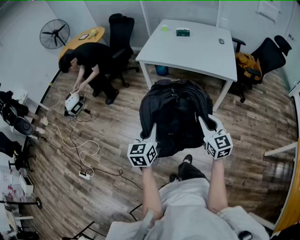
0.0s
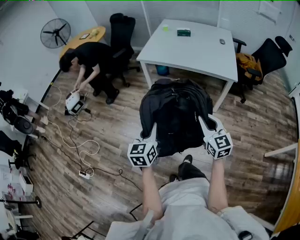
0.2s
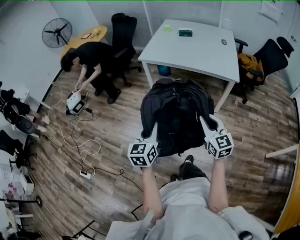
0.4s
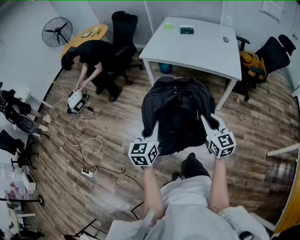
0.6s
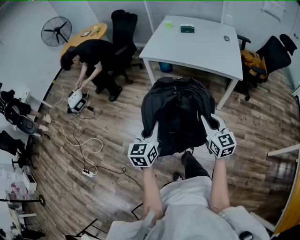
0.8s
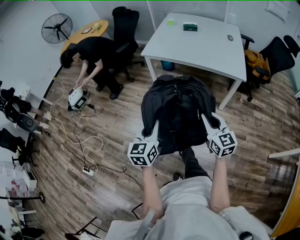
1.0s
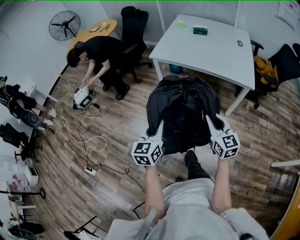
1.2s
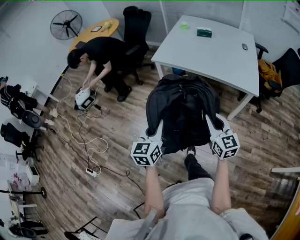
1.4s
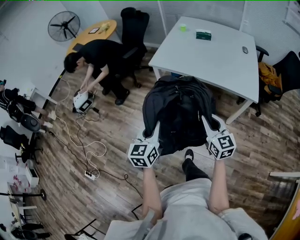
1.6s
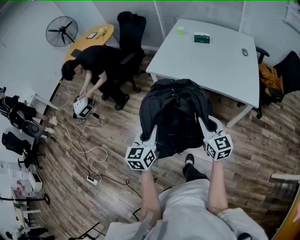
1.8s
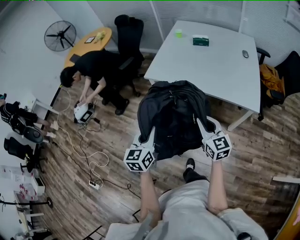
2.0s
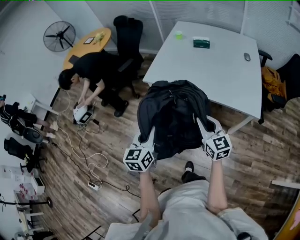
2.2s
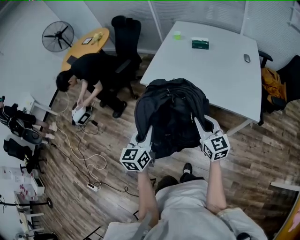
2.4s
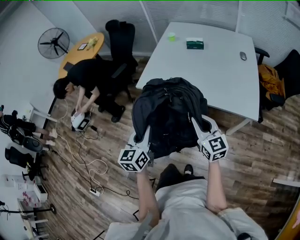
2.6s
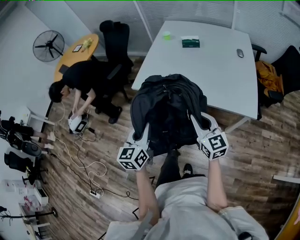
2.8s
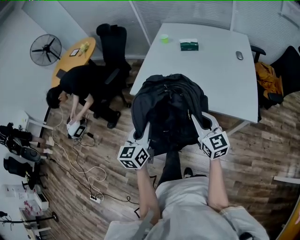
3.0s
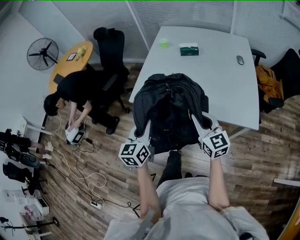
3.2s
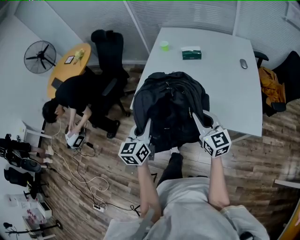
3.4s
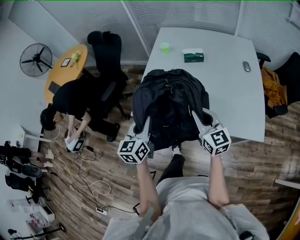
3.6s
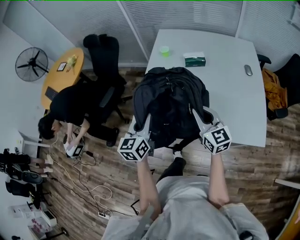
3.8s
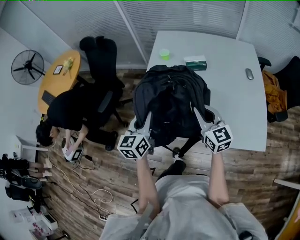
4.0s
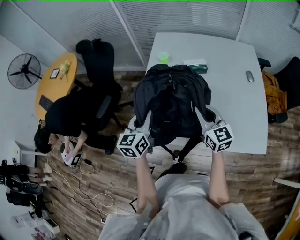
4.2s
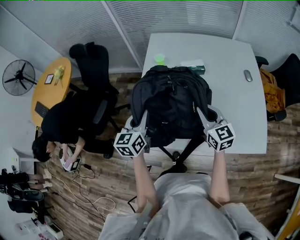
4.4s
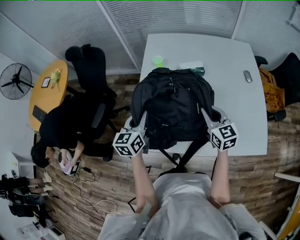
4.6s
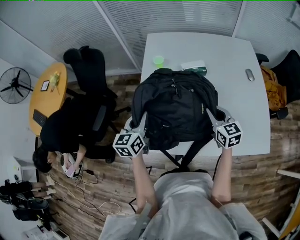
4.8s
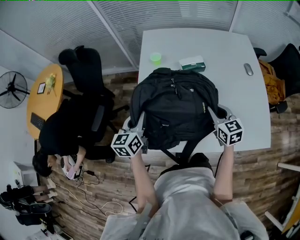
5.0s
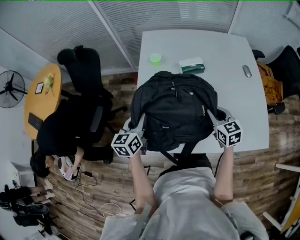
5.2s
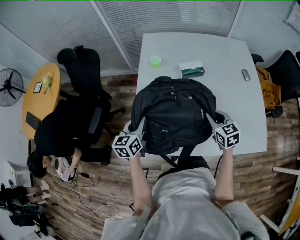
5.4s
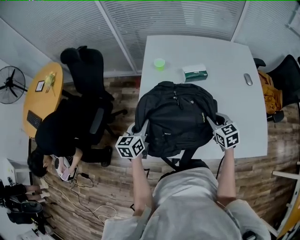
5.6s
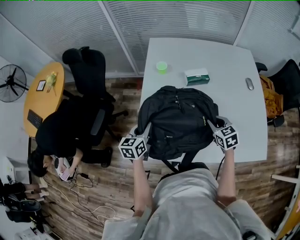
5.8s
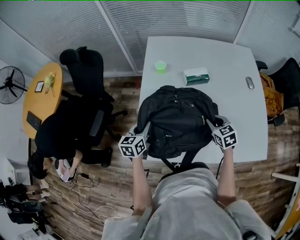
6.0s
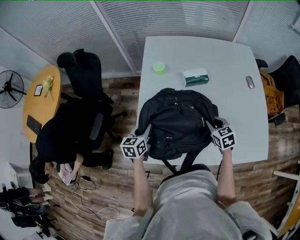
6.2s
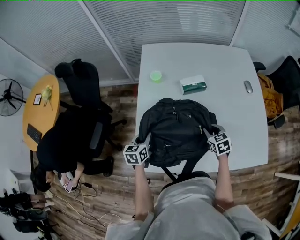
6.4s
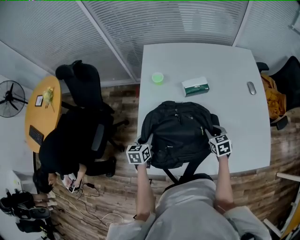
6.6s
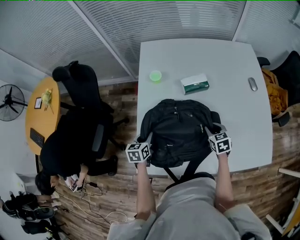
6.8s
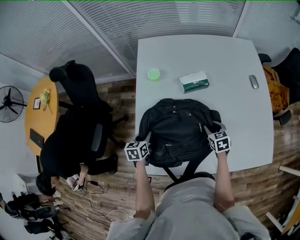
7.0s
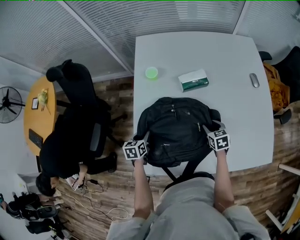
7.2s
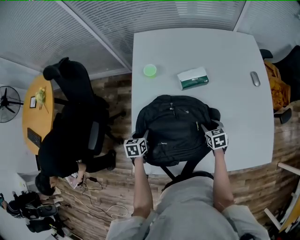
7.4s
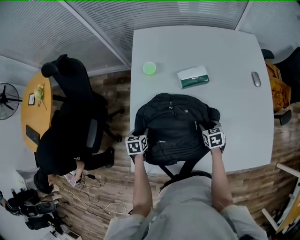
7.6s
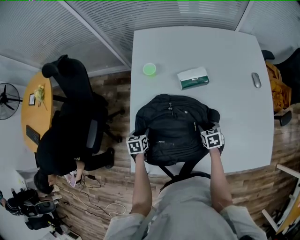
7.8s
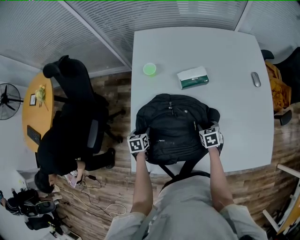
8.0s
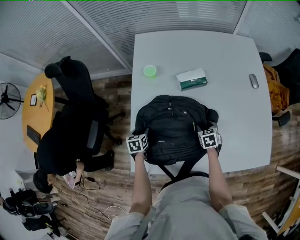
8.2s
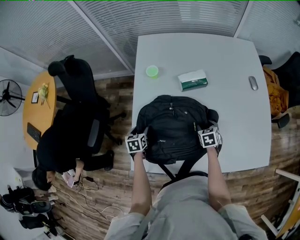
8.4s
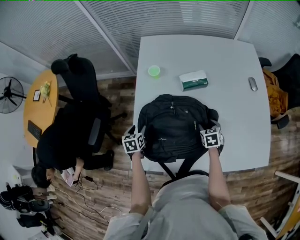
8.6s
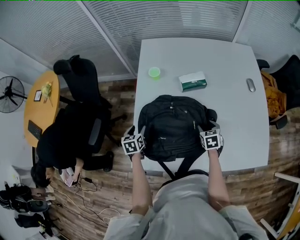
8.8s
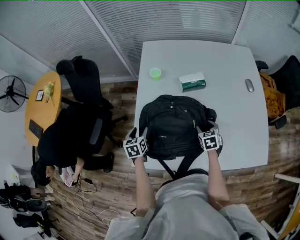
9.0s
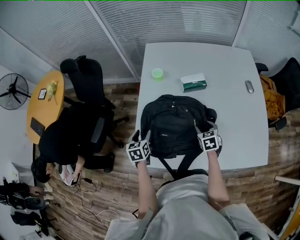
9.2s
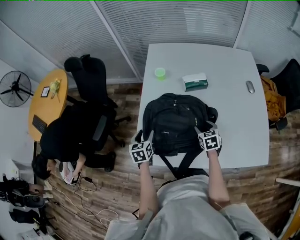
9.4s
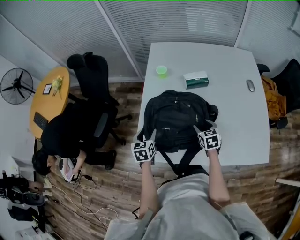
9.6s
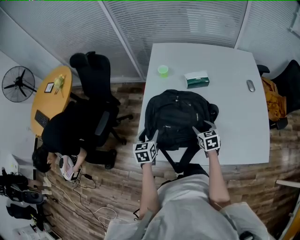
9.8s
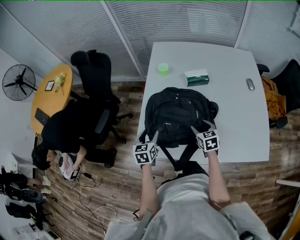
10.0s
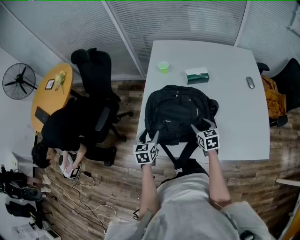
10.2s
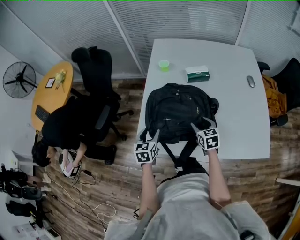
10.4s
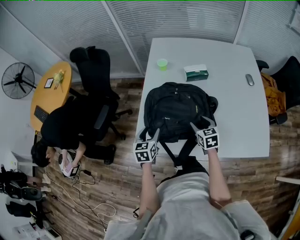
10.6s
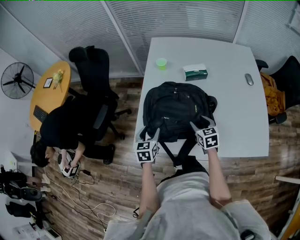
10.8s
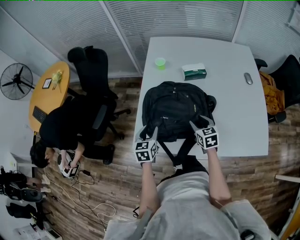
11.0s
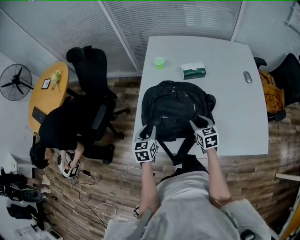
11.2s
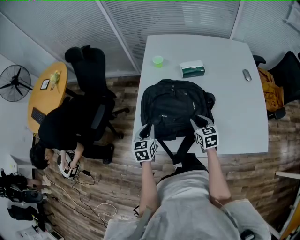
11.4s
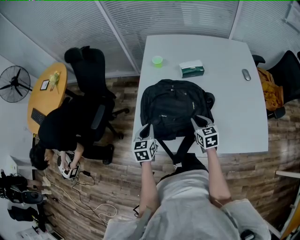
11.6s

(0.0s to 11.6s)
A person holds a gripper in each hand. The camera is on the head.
0.0s - 1.4s: Both grippers travel together forward, approximately 15 cm.
1.4s - 2.8s: Both grippers travel together forward, some 25 cm.
2.8s - 4.4s: Both grippers are carried forward, roughly 40 cm.
4.4s - 5.8s: The left gripper travels downward and forward by some 15 cm; the right gripper travels downward by approximately 10 cm, and swivels approximately 30 degrees.
5.8s - 7.2s: The two grippers go about 15 cm downward and forward. The right gripper opens. Meanwhile the left gripper turns by about 20 degrees, and opens up.
7.2s - 8.8s: The left gripper travels downward and back again, roughly 5 cm each way, and opens its fingers.
8.8s - 10.2s: The right gripper goes some 15 cm to the left, backward and upward; the left gripper shifts about 15 cm backward and upward.
10.2s - 11.6s: The left gripper closes. Meanwhile the right gripper closes up.

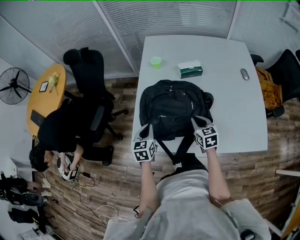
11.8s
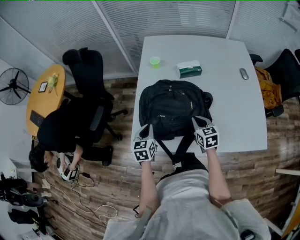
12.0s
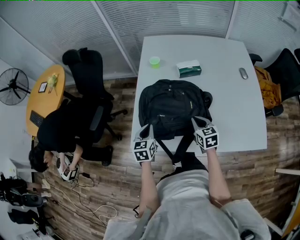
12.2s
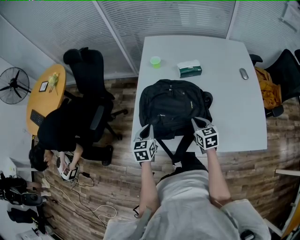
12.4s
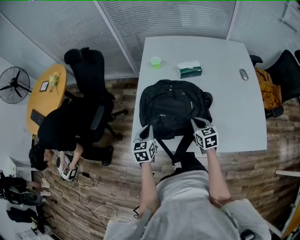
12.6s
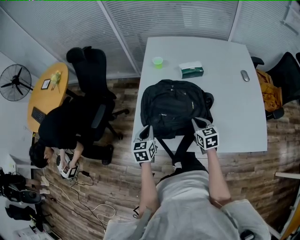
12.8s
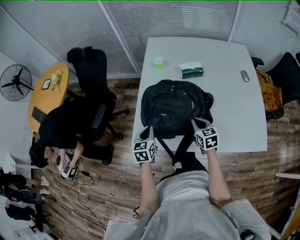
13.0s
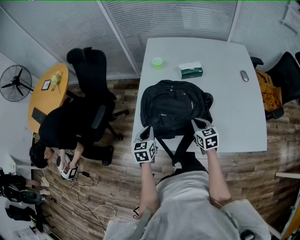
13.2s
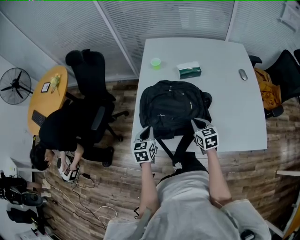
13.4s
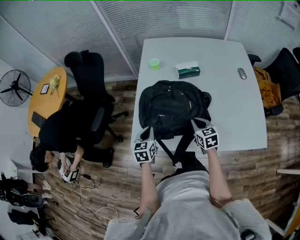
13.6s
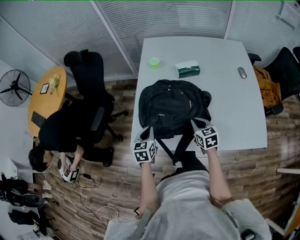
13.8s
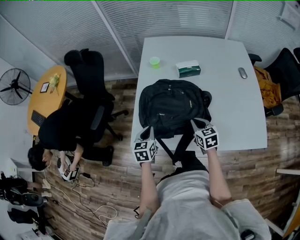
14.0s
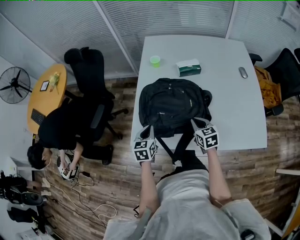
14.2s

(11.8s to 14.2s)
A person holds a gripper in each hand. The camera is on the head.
11.8s - 13.0s: The grippers move only a little.
13.0s - 14.2s: The two grippers keep their place.

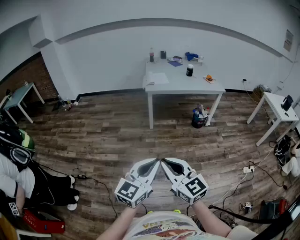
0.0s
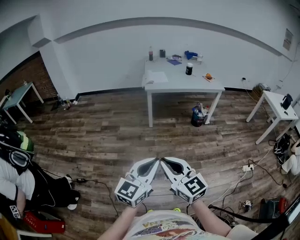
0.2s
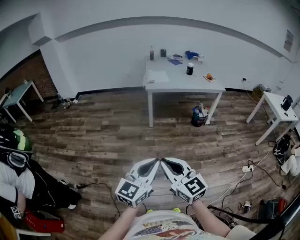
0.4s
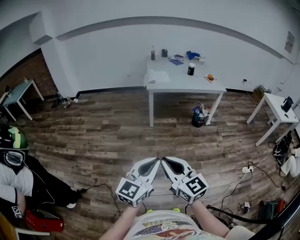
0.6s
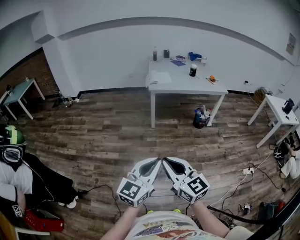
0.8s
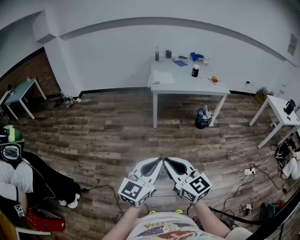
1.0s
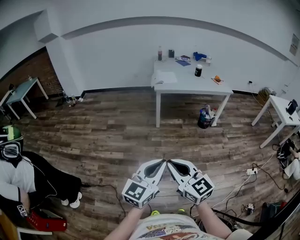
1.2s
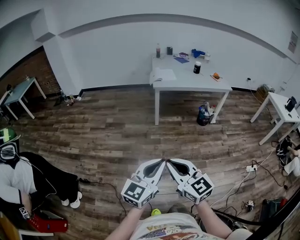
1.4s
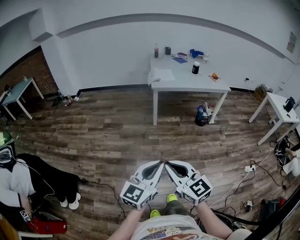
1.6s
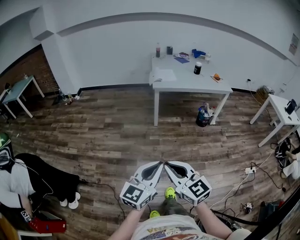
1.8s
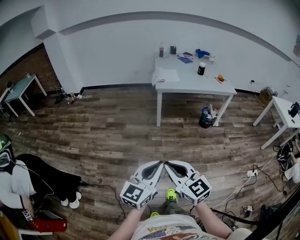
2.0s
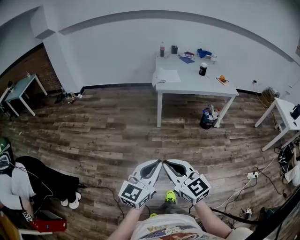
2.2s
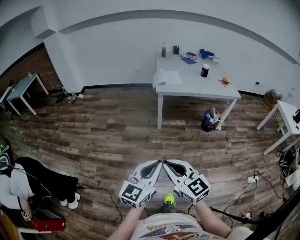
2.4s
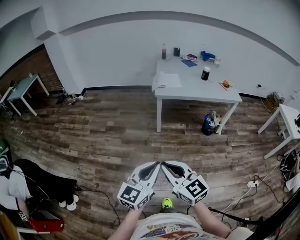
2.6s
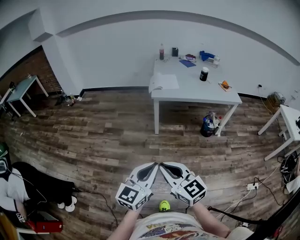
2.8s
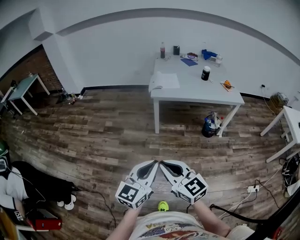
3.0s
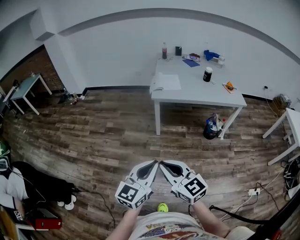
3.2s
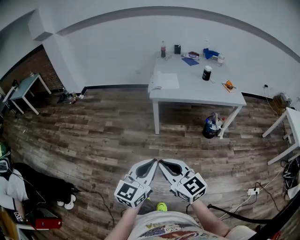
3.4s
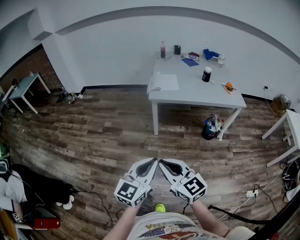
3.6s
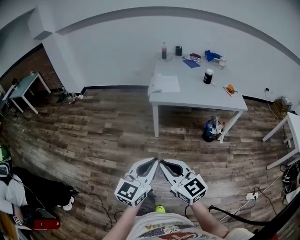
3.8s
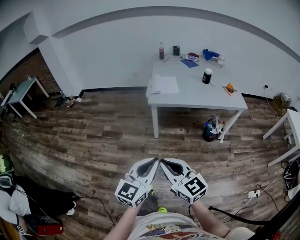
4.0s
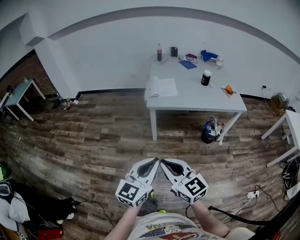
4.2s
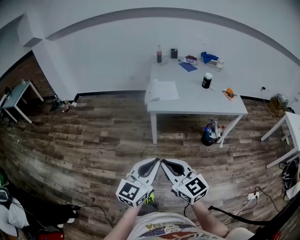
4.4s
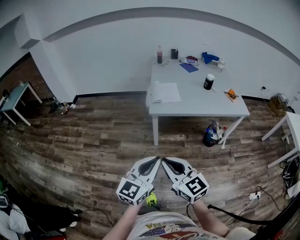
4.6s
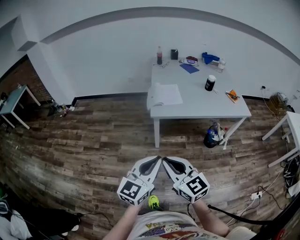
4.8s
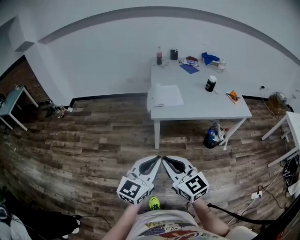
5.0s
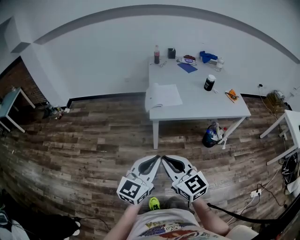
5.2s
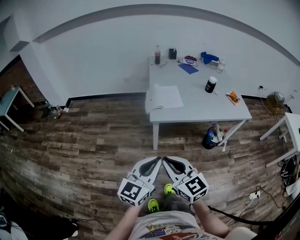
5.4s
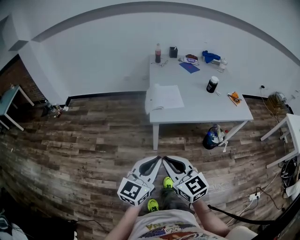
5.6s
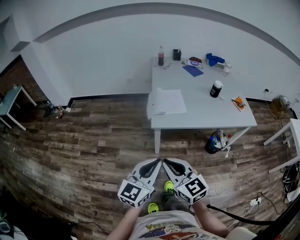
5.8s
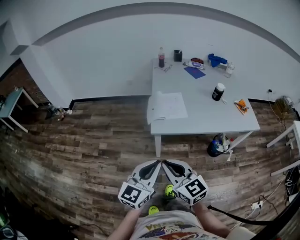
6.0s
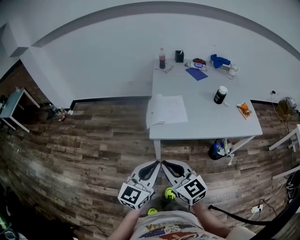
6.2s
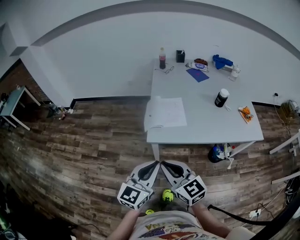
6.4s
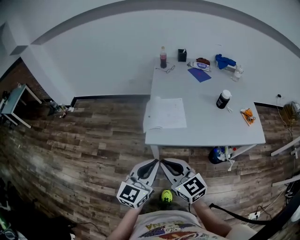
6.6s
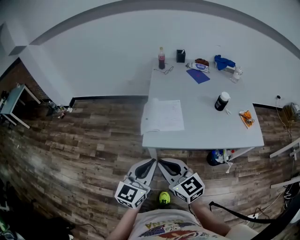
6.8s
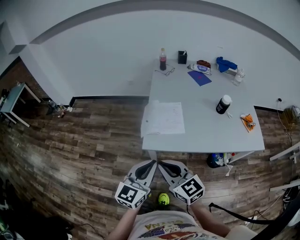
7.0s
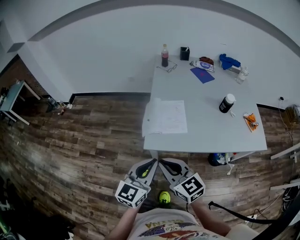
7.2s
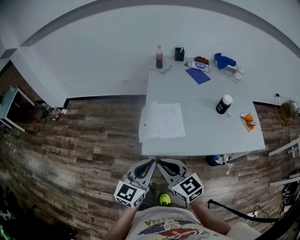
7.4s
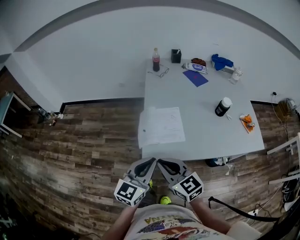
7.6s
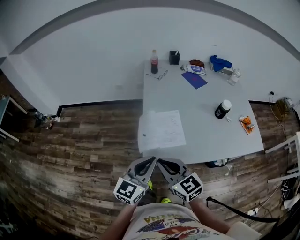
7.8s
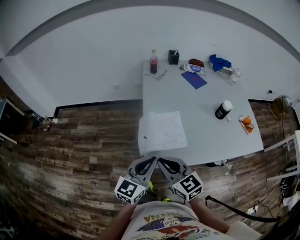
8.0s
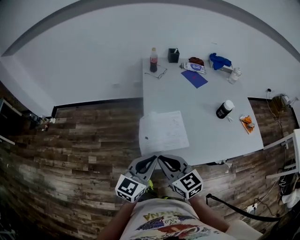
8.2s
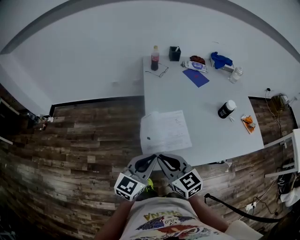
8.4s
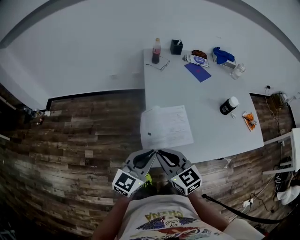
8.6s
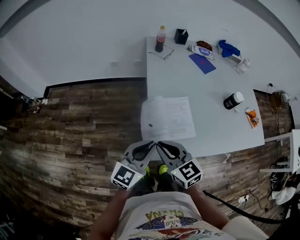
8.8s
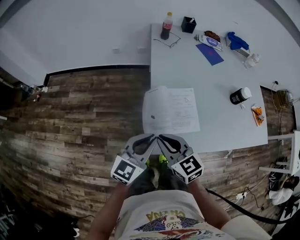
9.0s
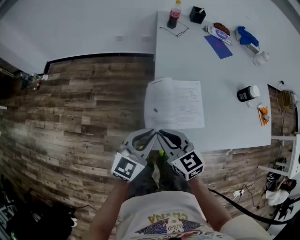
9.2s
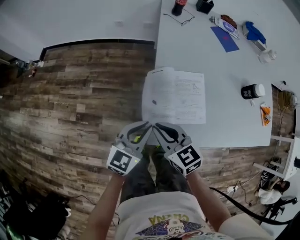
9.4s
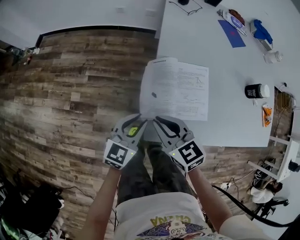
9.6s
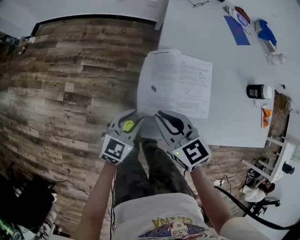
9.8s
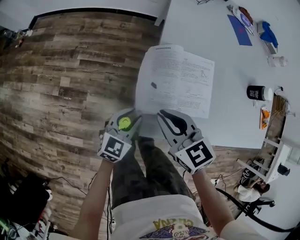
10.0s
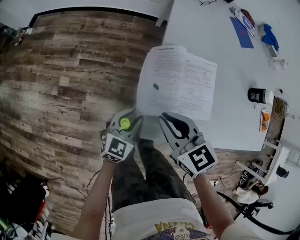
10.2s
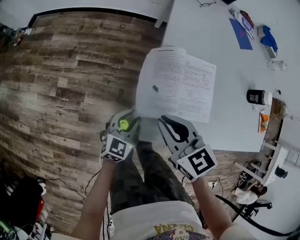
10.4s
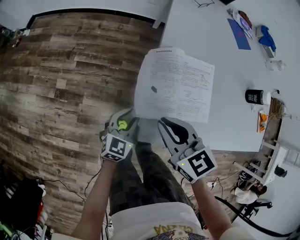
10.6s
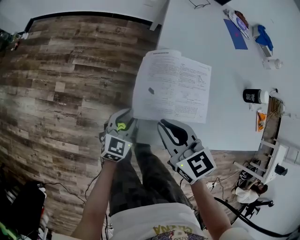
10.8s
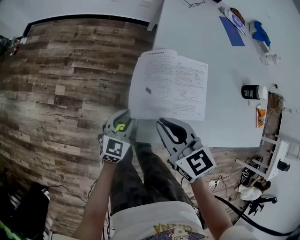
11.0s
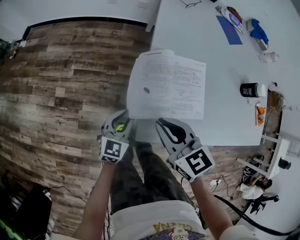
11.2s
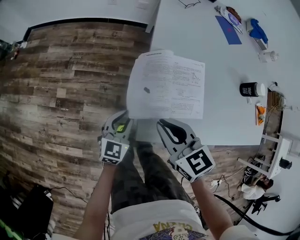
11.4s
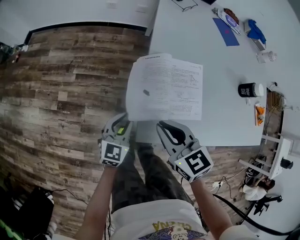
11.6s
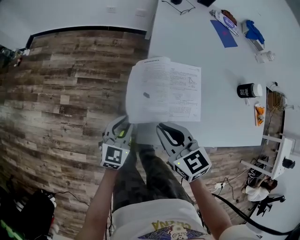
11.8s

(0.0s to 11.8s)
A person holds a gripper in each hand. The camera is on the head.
0.0s - 1.4s: Both grippers travel together to the left, about 5 cm.
1.4s - 3.0s: Both grippers move forward and to the right, approximately 30 cm.
3.0s - 4.4s: Both grippers move forward, approximately 20 cm.
4.4s - 6.0s: Both grippers move forward, about 25 cm.
6.0s - 7.4s: Both grippers move forward, approximately 20 cm.
7.4s - 8.8s: Both grippers travel together forward and to the left, about 20 cm.
8.8s - 10.4s: The left gripper moves downward, some 30 cm, rotates some 20 degrees, and opens its fingers, while the right gripper heads downward, covering some 15 cm.
10.4s - 11.8s: The left gripper travels upward by roughly 5 cm.
